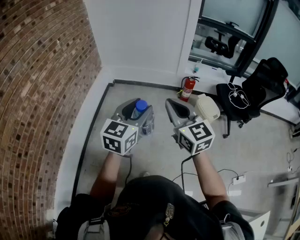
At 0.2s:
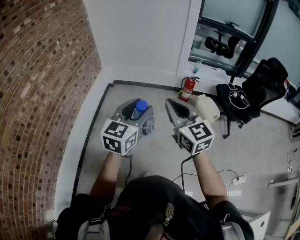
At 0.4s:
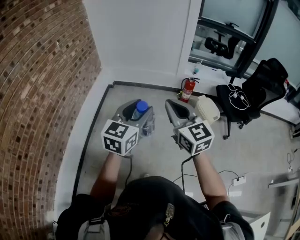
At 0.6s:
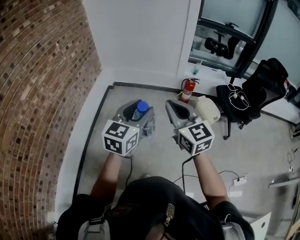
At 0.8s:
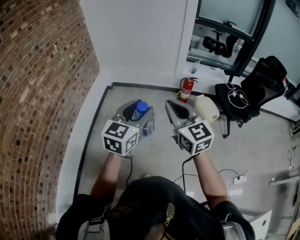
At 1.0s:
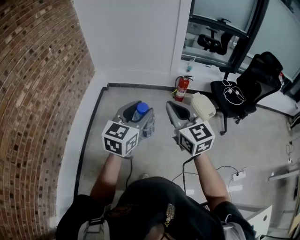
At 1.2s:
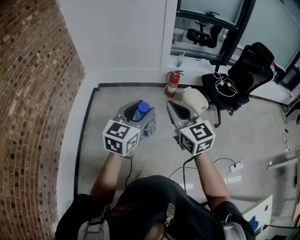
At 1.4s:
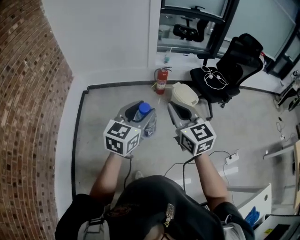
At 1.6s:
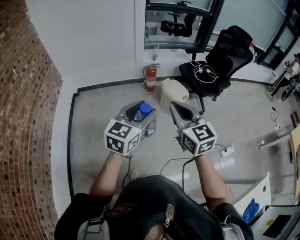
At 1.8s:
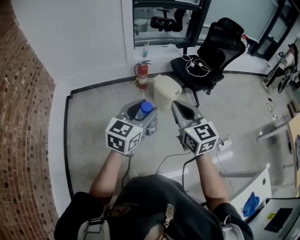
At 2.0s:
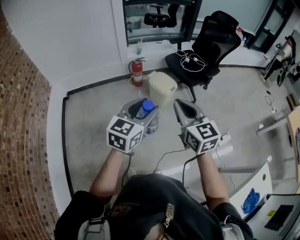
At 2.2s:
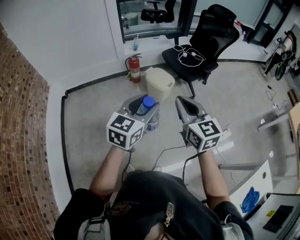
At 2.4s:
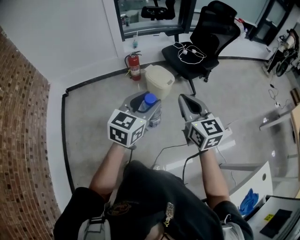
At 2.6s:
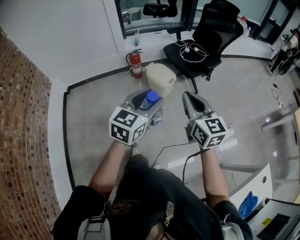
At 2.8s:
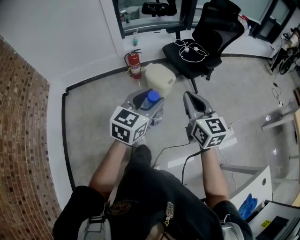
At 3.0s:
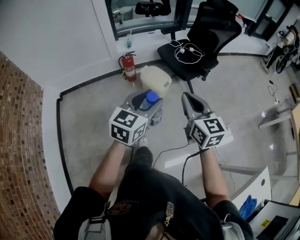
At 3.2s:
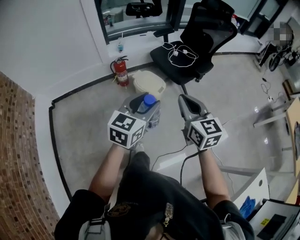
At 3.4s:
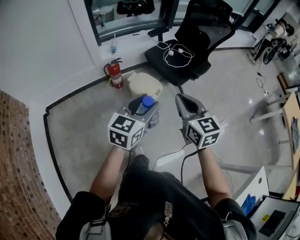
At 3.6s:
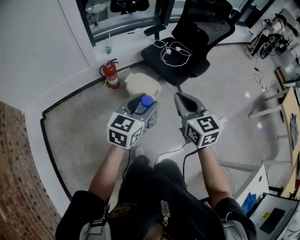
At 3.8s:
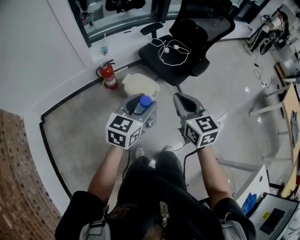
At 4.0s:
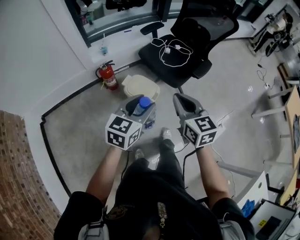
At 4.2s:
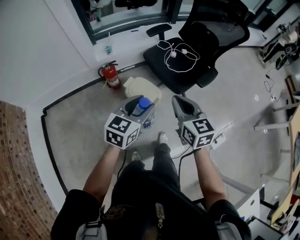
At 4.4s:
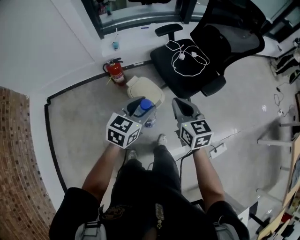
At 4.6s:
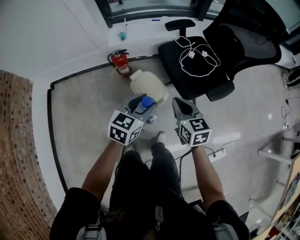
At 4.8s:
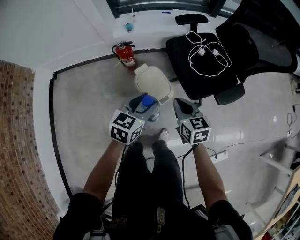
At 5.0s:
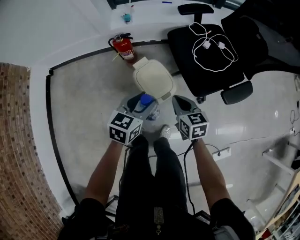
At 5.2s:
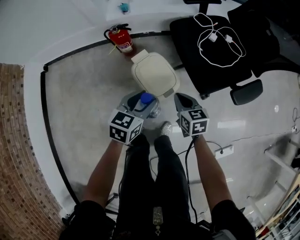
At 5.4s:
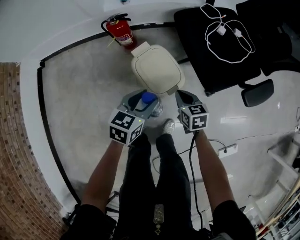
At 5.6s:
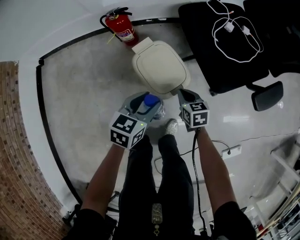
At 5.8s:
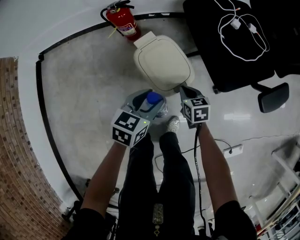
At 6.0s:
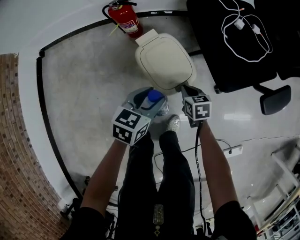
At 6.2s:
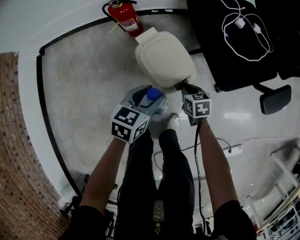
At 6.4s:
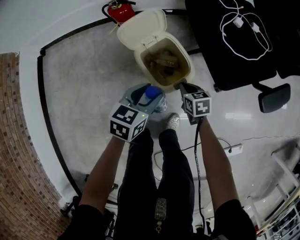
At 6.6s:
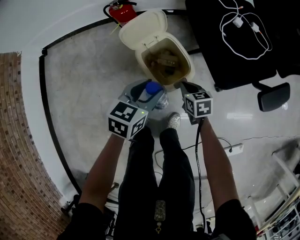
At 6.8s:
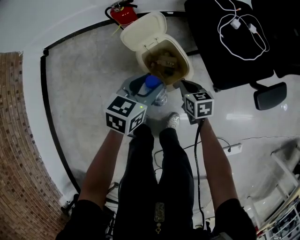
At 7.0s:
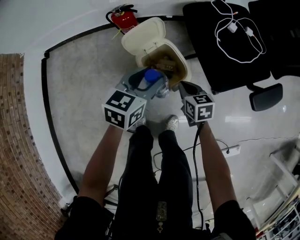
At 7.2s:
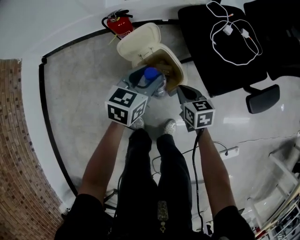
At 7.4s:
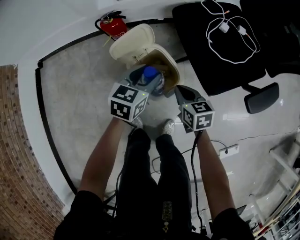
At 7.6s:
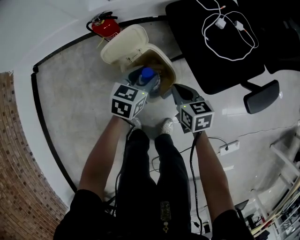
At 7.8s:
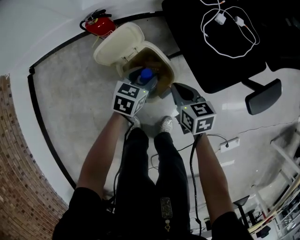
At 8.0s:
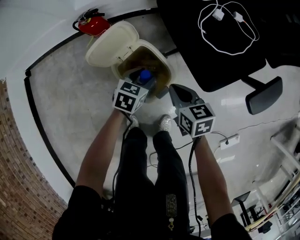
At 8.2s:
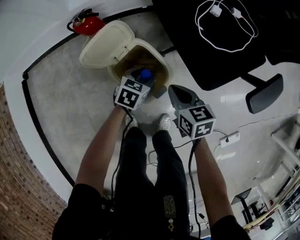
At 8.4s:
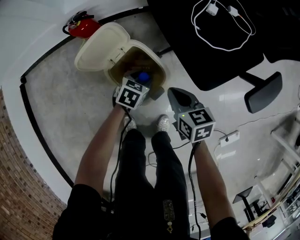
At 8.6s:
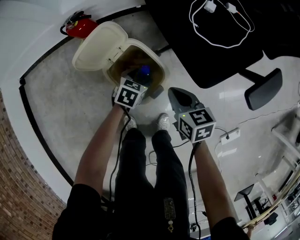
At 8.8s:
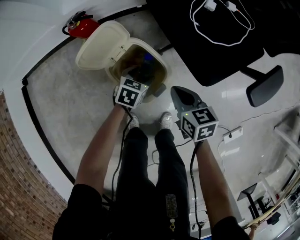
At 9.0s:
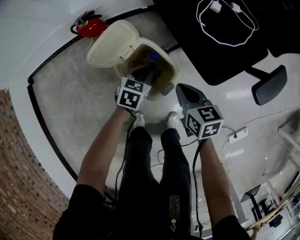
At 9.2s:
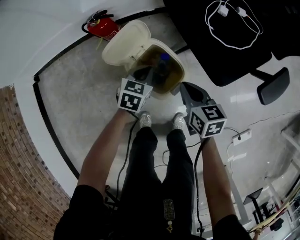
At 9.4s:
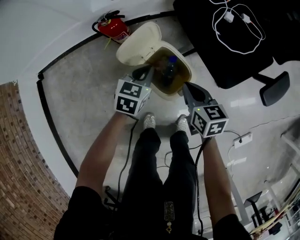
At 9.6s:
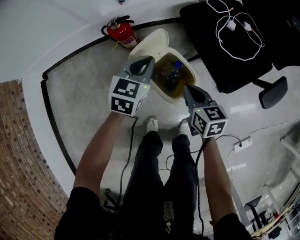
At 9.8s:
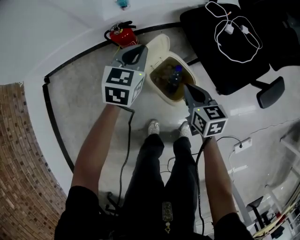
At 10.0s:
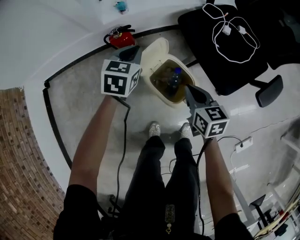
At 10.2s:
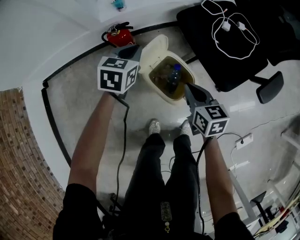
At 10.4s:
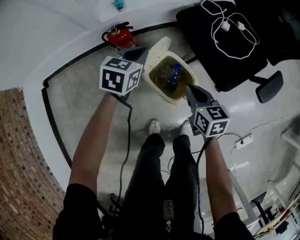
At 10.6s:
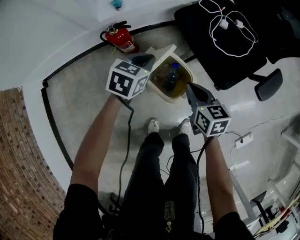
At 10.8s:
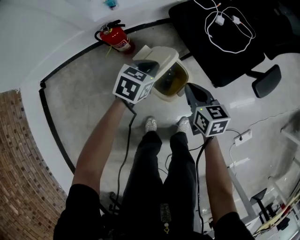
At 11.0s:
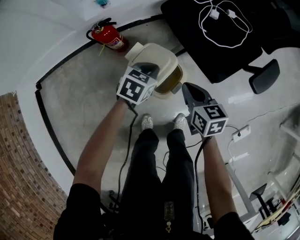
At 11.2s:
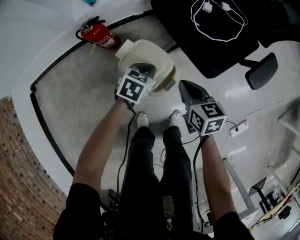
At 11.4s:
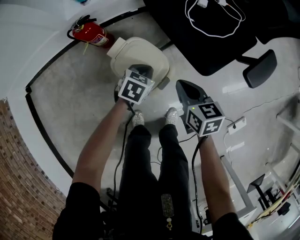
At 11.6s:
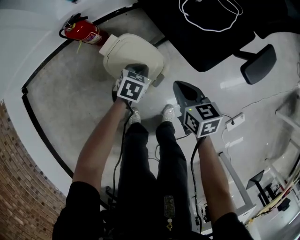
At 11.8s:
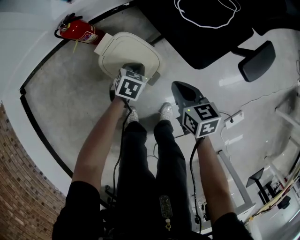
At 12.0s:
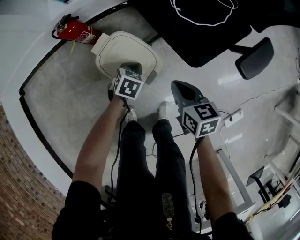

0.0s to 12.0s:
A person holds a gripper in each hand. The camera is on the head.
0.0s to 1.6s: The two grippers go about 20 cm to the right. The right gripper turns by roughly 20 degrees. Meanwhile the left gripper swivels approximately 20 degrees.
1.6s to 3.0s: The two grippers go roughly 25 cm to the right and forward.
3.0s to 4.4s: Both grippers travel together forward and downward, some 35 cm.
4.4s to 6.0s: The grippers both shift downward by some 40 cm. The left gripper swivels approximately 20 degrees. The right gripper angles its fingers downward, by some 30 degrees.
6.0s to 7.6s: The right gripper heads upward, covering some 10 cm; the left gripper goes about 10 cm forward.
7.6s to 9.0s: The left gripper goes about 10 cm downward, and closes.
9.0s to 10.4s: The left gripper shifts about 25 cm upward, to the left and forward; the right gripper moves upward and to the left, roughly 10 cm.
10.4s to 12.0s: The left gripper goes roughly 30 cm downward and to the right, and turns by approximately 20 degrees; the right gripper heads to the right and downward, covering roughly 15 cm.

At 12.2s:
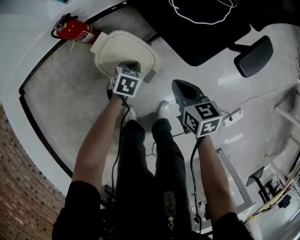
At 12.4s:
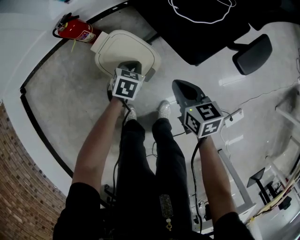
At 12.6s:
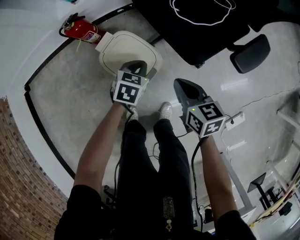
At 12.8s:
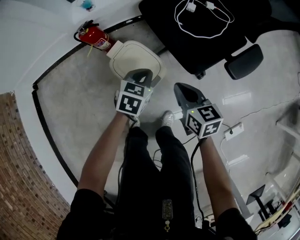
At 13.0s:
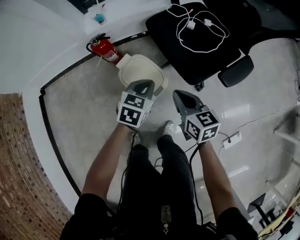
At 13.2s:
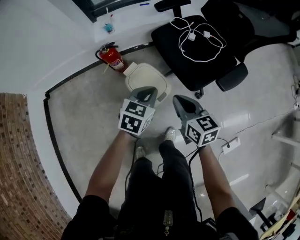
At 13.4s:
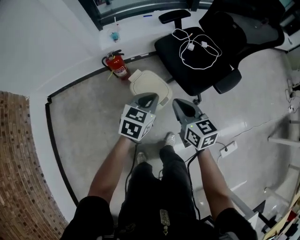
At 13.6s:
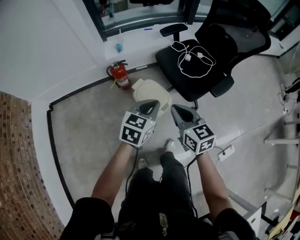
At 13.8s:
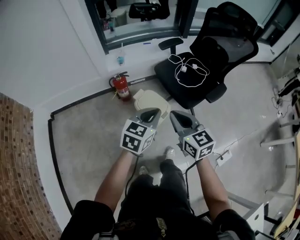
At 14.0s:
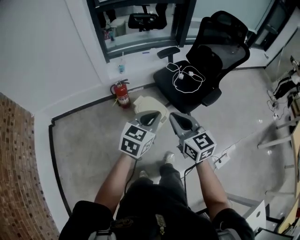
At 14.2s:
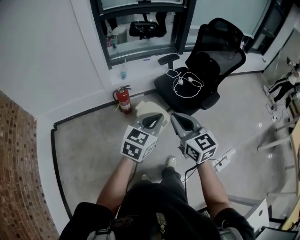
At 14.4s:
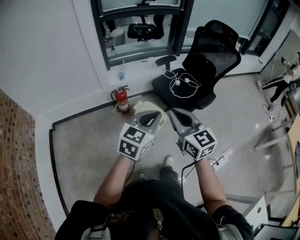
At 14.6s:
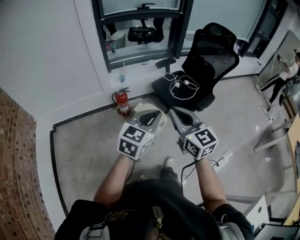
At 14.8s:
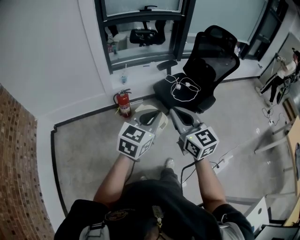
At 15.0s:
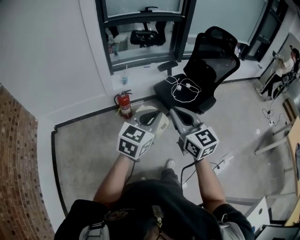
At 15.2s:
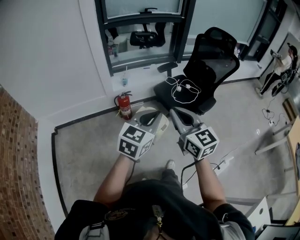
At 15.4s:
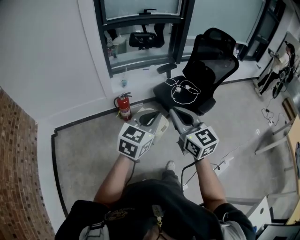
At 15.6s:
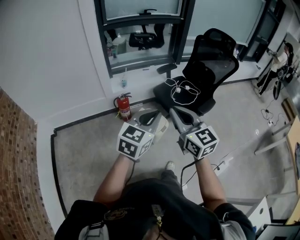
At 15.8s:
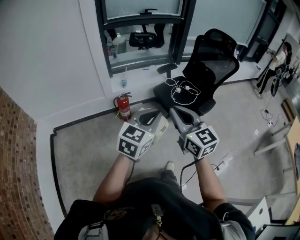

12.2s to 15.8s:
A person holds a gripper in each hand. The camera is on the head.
12.2s to 14.0s: Both grippers travel together upward, roughly 50 cm. The left gripper tips its fingers upward by approximately 40 degrees; the right gripper swivels approximately 40 degrees.
14.0s to 15.8s: The right gripper moves upward, approximately 10 cm. The left gripper shifts about 10 cm upward and backward.

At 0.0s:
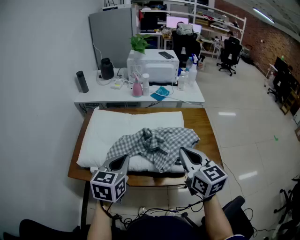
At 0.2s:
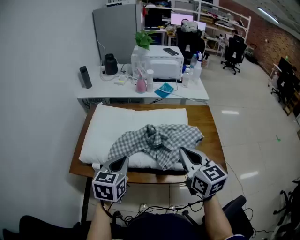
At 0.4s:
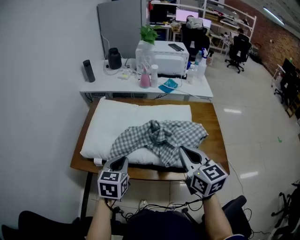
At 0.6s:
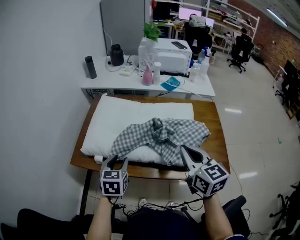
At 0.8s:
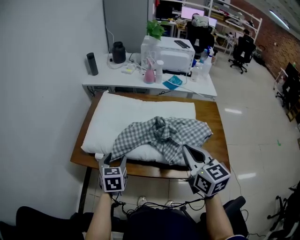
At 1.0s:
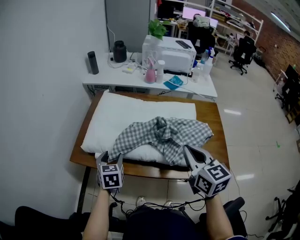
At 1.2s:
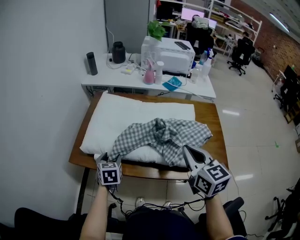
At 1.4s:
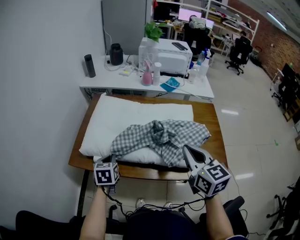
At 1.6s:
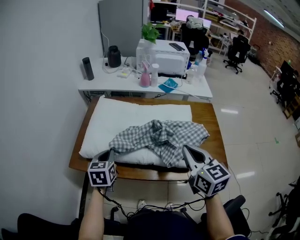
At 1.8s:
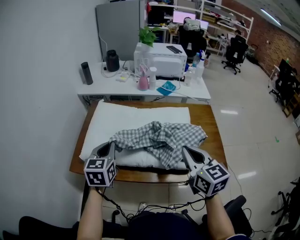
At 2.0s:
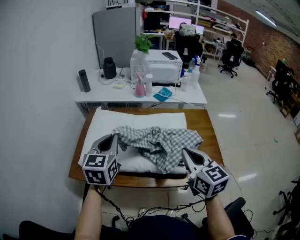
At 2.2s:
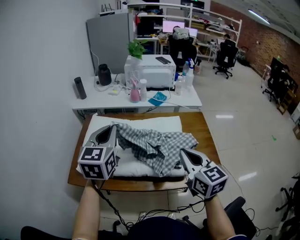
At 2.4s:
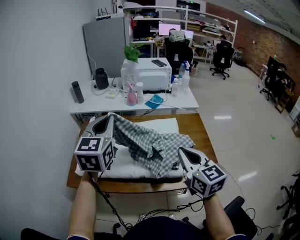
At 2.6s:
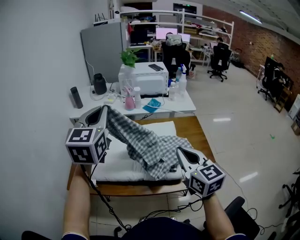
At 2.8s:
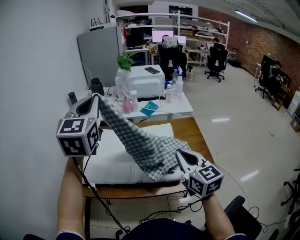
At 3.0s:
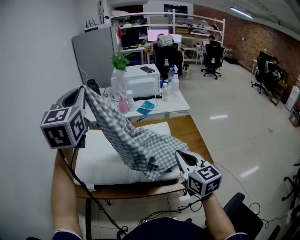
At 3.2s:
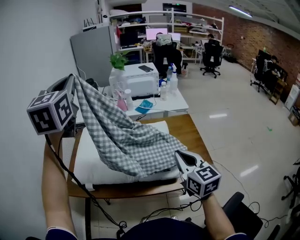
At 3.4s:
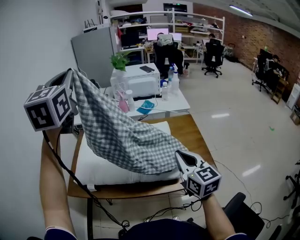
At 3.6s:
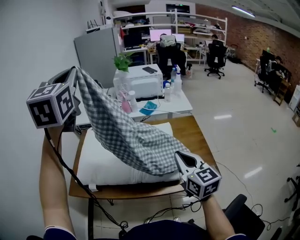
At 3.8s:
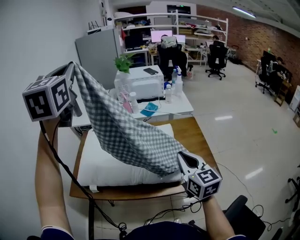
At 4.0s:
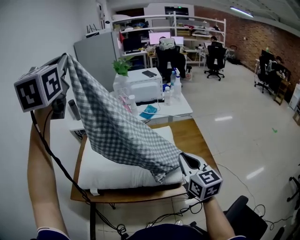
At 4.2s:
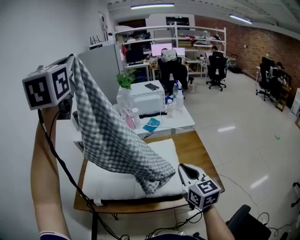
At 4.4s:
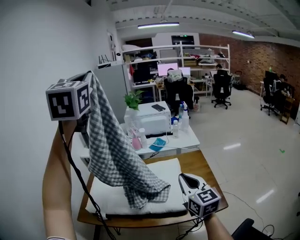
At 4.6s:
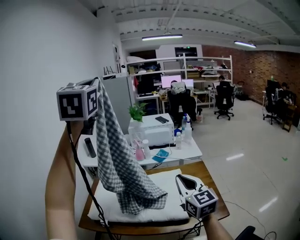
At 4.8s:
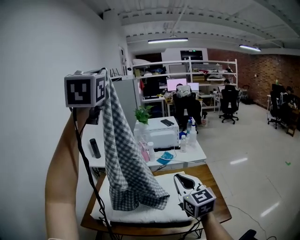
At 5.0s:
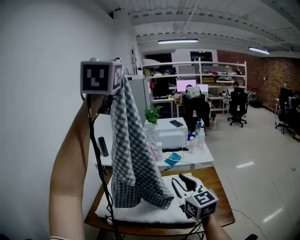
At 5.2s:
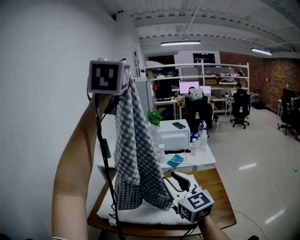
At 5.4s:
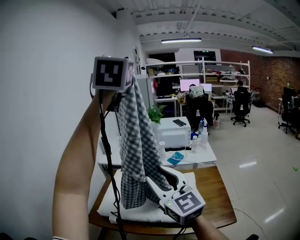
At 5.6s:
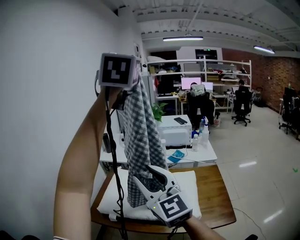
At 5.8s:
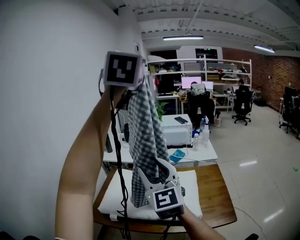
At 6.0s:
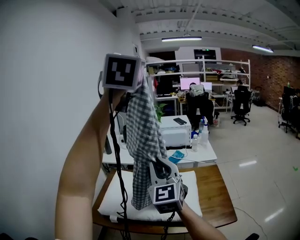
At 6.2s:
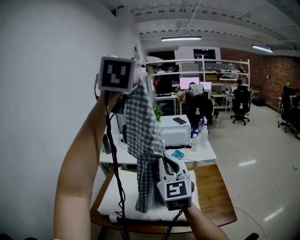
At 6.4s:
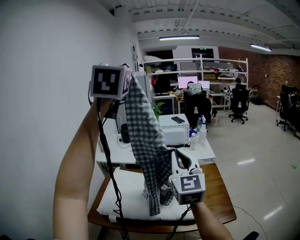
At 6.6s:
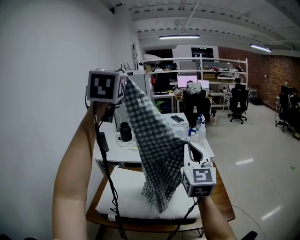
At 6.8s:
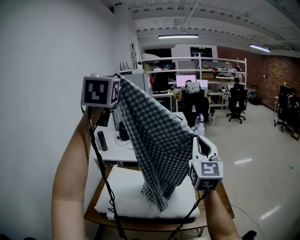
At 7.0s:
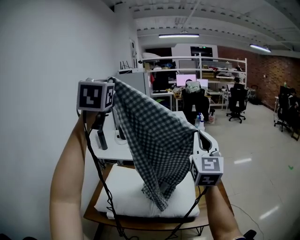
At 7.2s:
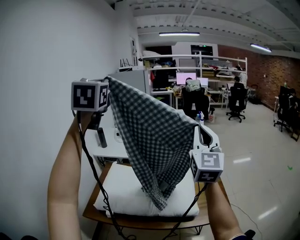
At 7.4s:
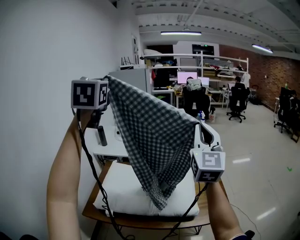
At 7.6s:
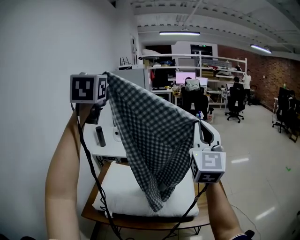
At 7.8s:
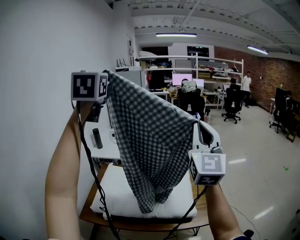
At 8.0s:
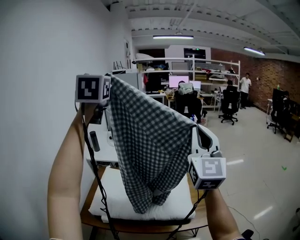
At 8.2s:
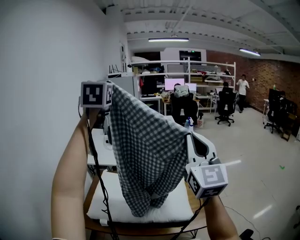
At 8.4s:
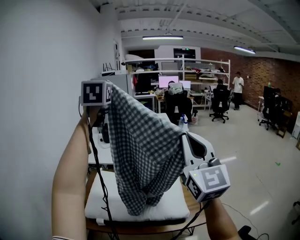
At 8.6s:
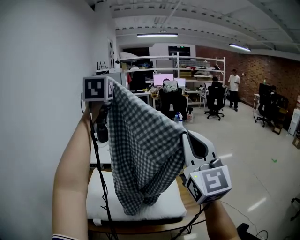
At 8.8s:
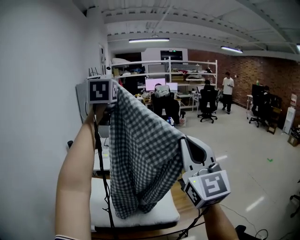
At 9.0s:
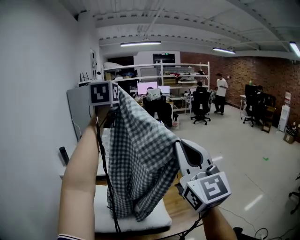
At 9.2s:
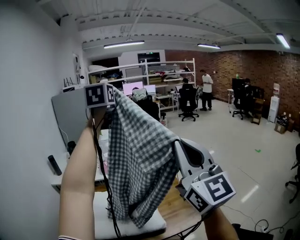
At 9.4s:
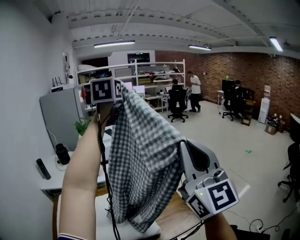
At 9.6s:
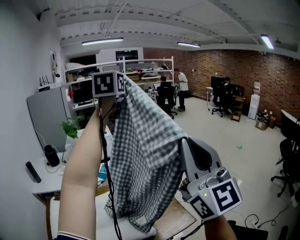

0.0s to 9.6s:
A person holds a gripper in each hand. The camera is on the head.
0.0s to 1.6s: The left gripper is displaced to the left, downward and forward by approximately 15 cm, and opens, then closes again.
1.6s to 3.2s: The right gripper heads to the right, covering roughly 5 cm. The left gripper goes some 50 cm upward, and angles its fingers upward, by approximately 40 degrees.
3.2s to 4.8s: The right gripper travels upward, forward and to the left by about 15 cm; the left gripper is displaced upward by about 20 cm.
4.8s to 6.4s: The right gripper goes roughly 10 cm upward, moves approximately 15 cm to the left and comes back, and opens and closes again.
6.4s to 8.0s: The left gripper moves to the left and downward, approximately 10 cm. Meanwhile the right gripper shifts about 10 cm to the right and upward.
8.0s to 9.6s: The left gripper ends up some 50 cm from where it was, and rotates roughly 40 degrees, while the right gripper shifts by roughly 20 cm.
